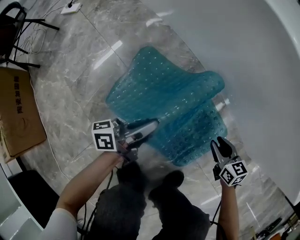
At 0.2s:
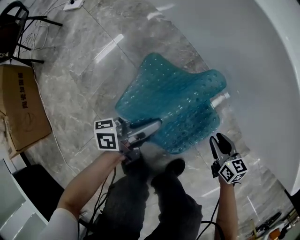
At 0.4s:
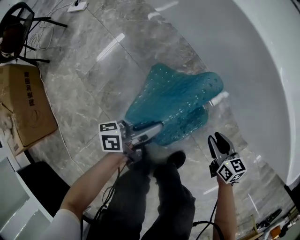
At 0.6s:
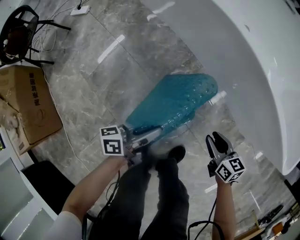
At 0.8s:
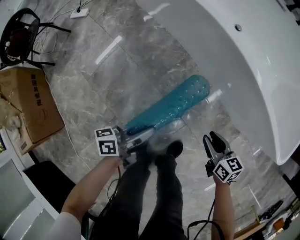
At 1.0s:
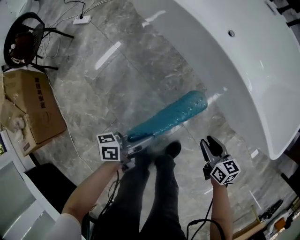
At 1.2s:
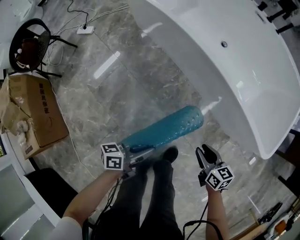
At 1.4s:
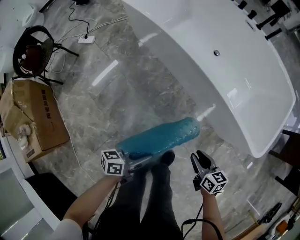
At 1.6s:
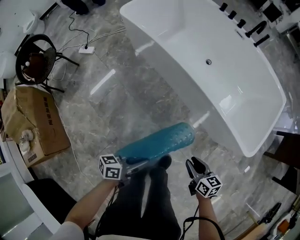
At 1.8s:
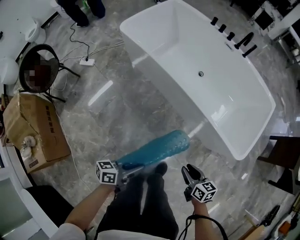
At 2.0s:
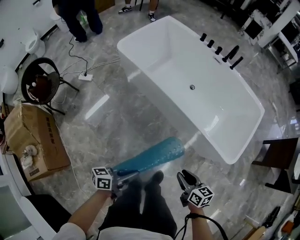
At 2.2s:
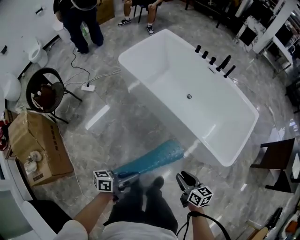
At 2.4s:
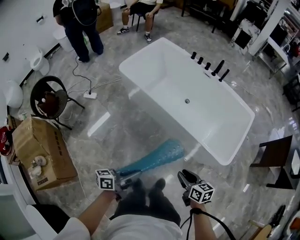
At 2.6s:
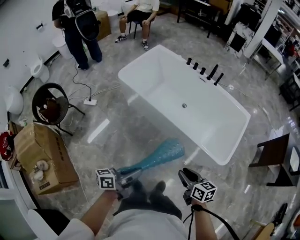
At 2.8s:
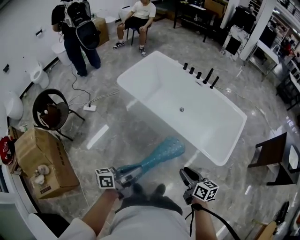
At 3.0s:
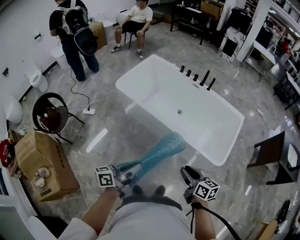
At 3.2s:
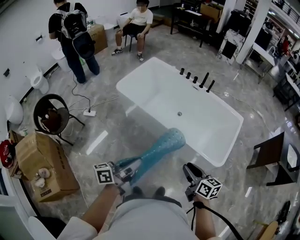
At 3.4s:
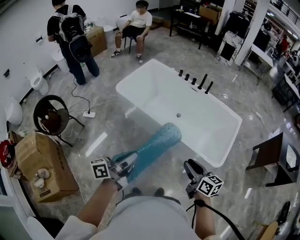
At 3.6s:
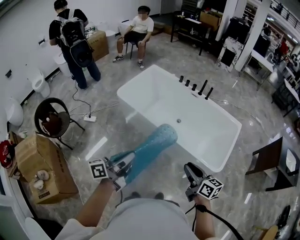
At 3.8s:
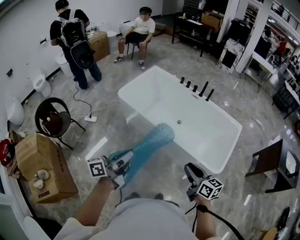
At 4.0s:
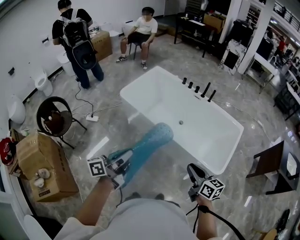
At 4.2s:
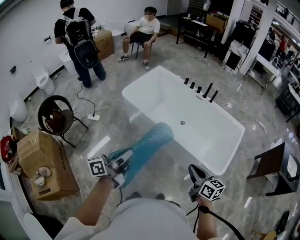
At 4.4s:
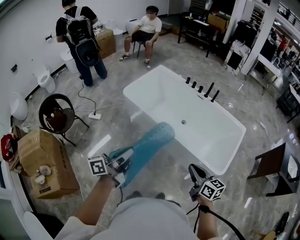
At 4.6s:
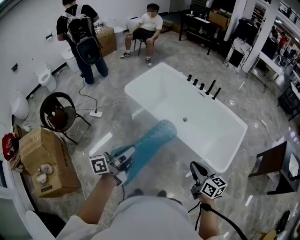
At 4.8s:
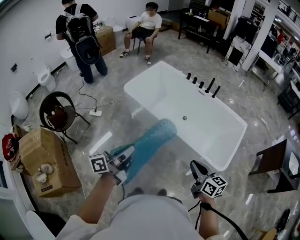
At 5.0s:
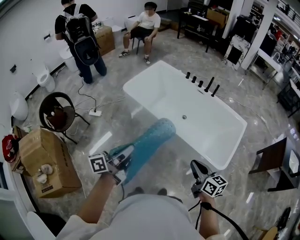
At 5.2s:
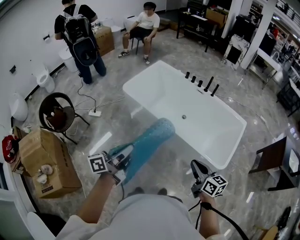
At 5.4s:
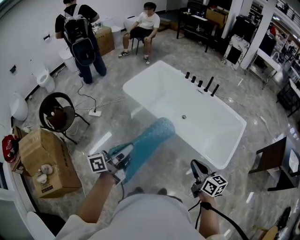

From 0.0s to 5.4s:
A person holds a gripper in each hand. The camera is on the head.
From 0.0s to 1.4s: The left gripper is displaced upward and backward by about 35 cm; the right gripper travels upward by roughly 35 cm.
From 1.4s to 2.8s: Both grippers move upward, some 40 cm.
From 2.8s to 4.0s: The left gripper shifts some 10 cm upward and to the left; the right gripper moves upward, some 10 cm.
From 4.0s to 5.4s: The grippers make only small movements.

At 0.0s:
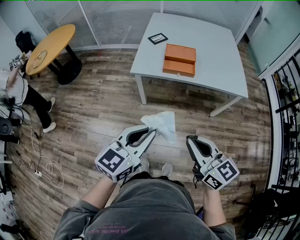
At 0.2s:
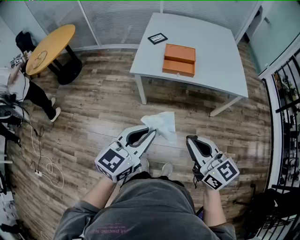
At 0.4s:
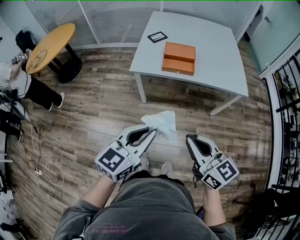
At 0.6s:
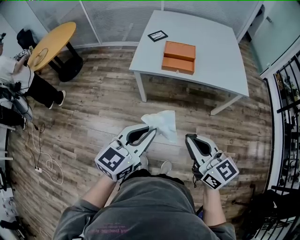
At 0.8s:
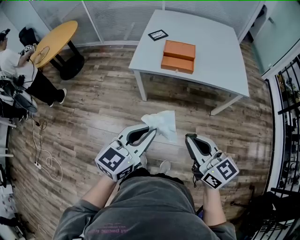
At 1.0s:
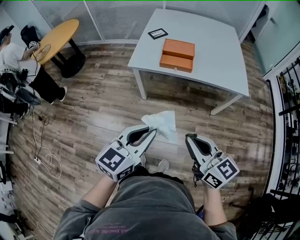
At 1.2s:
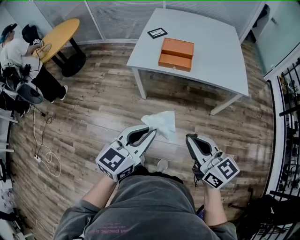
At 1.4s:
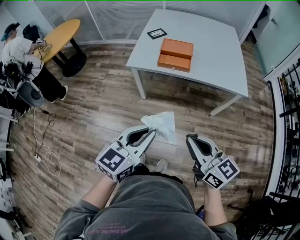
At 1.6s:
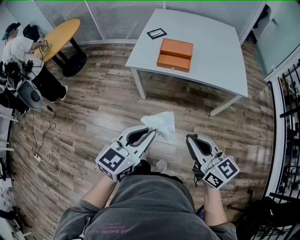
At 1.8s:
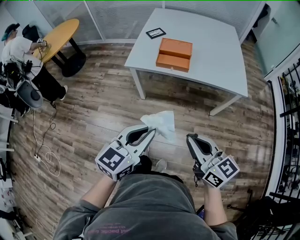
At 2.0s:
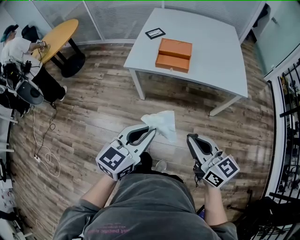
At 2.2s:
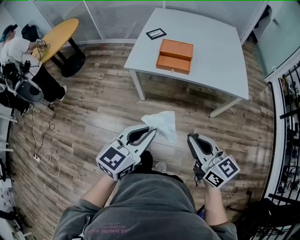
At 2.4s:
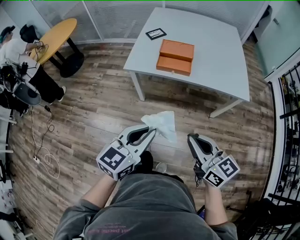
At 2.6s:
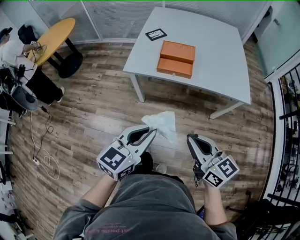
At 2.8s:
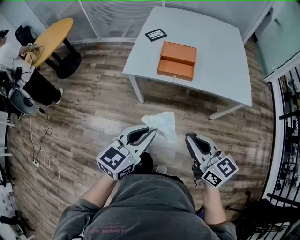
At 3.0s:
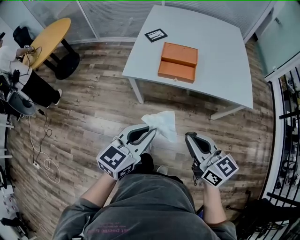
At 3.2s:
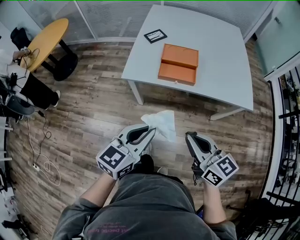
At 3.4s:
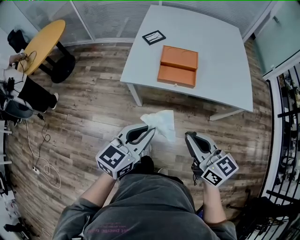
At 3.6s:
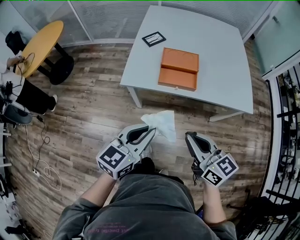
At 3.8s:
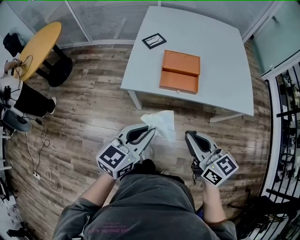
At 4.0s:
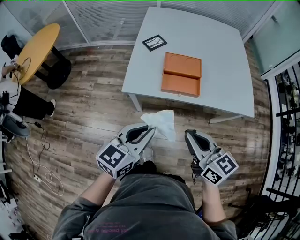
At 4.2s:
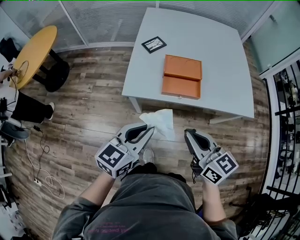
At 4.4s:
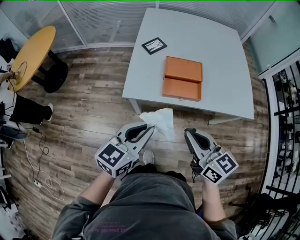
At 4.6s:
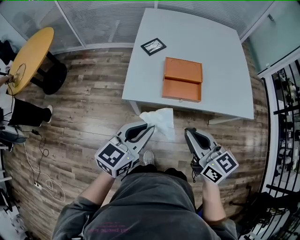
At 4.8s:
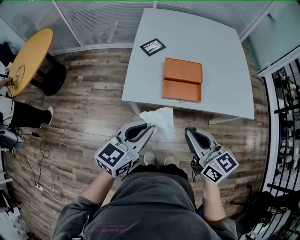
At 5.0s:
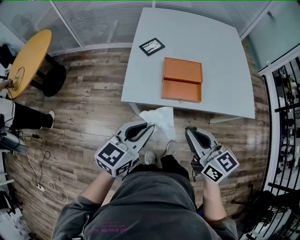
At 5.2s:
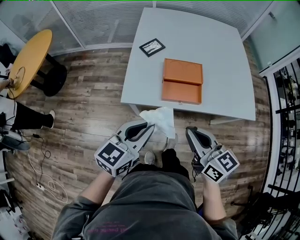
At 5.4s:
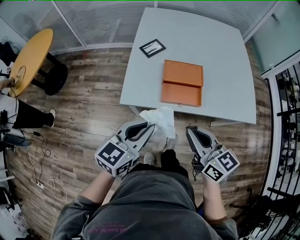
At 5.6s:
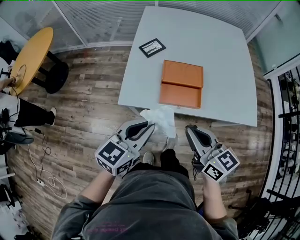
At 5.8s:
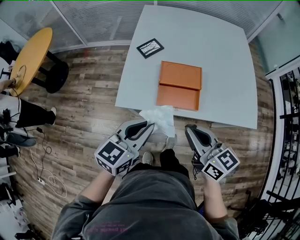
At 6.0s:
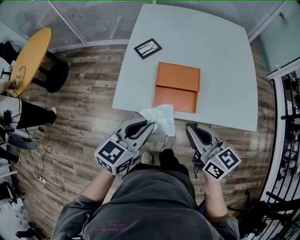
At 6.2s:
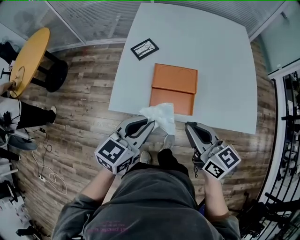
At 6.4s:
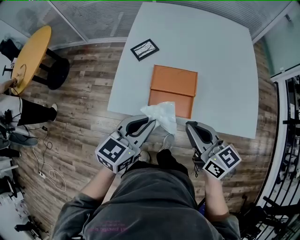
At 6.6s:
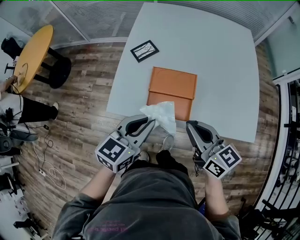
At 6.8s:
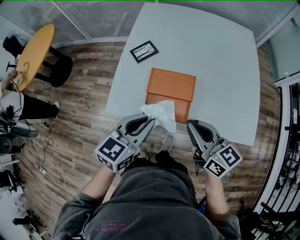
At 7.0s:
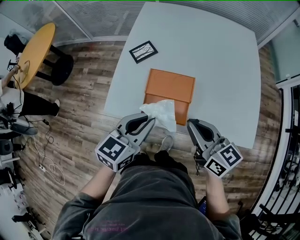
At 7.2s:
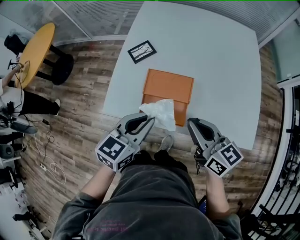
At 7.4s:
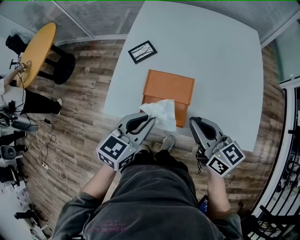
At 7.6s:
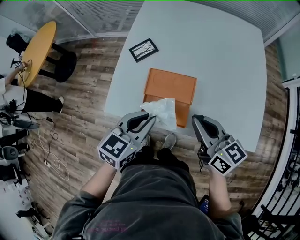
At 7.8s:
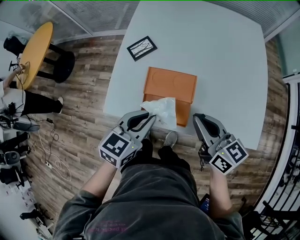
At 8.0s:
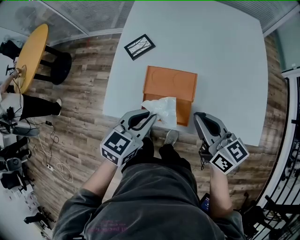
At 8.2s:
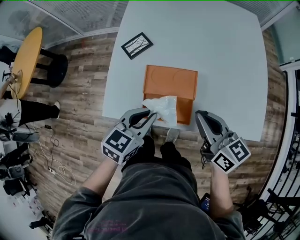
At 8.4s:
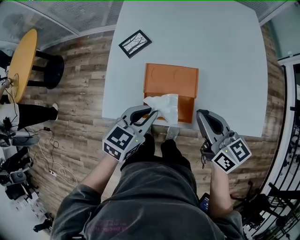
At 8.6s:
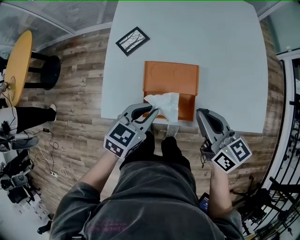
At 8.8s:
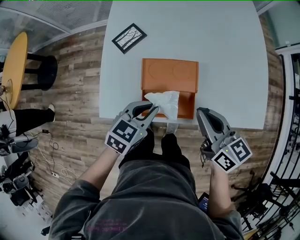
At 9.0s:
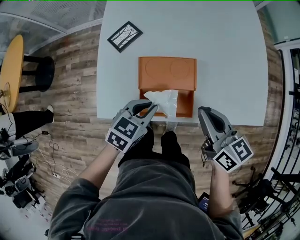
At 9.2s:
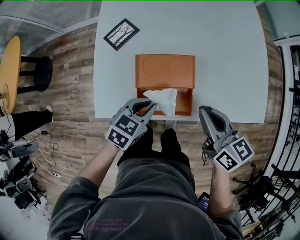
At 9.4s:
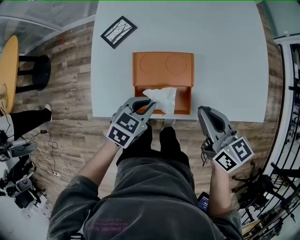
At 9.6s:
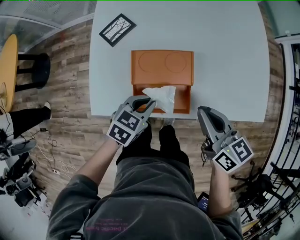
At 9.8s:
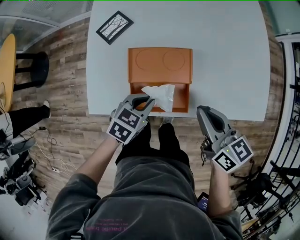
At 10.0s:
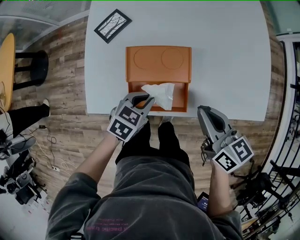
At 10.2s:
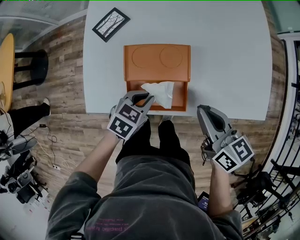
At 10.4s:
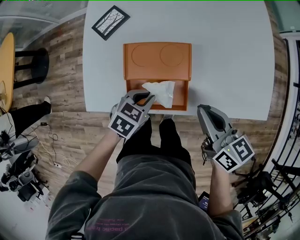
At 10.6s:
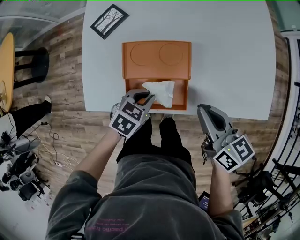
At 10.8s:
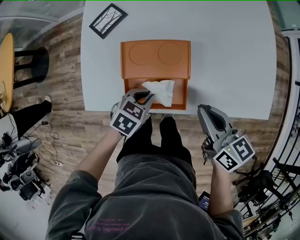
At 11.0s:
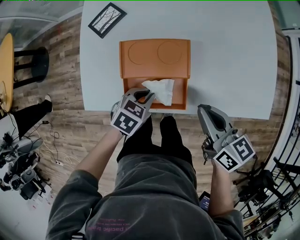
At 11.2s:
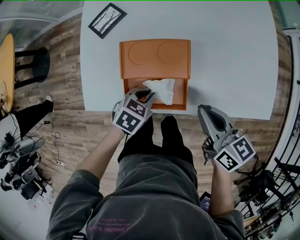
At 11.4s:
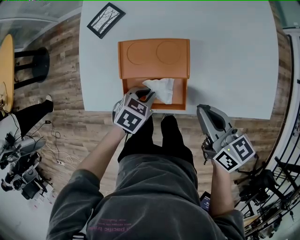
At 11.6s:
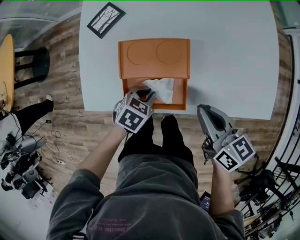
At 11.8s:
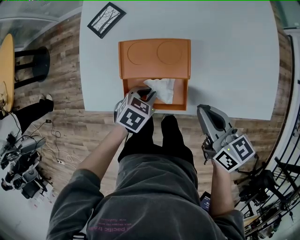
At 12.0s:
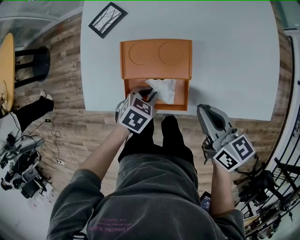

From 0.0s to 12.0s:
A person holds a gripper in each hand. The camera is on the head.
From 0.0s to 1.6s: Both grippers move to the right, roughly 10 cm.
From 1.6s to 3.0s: Both grippers travel together forward, approximately 15 cm.
From 3.0s to 4.4s: Both grippers travel together forward and to the left, roughly 20 cm.
From 4.4s to 6.0s: Both grippers travel together forward and to the right, approximately 15 cm.
From 6.0s to 7.6s: Both grippers move forward and to the right, approximately 15 cm.
From 7.6s to 9.0s: The right gripper heads downward, covering roughly 5 cm. Meanwhile the left gripper heads downward, covering about 15 cm, and swivels about 20 degrees.
From 9.0s to 10.4s: The right gripper heads downward, covering about 5 cm. Meanwhile the left gripper moves downward, some 10 cm.
From 10.4s to 12.0s: The grippers stay close to where they were, moving slightly.

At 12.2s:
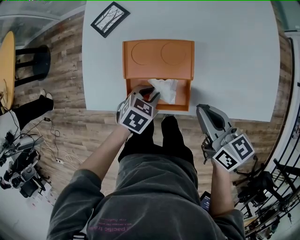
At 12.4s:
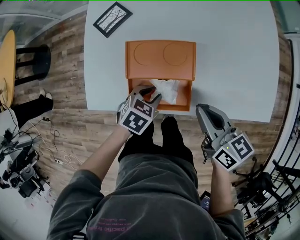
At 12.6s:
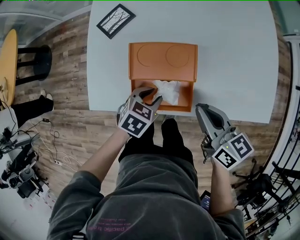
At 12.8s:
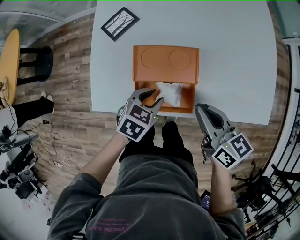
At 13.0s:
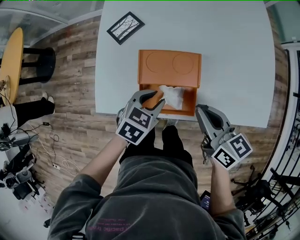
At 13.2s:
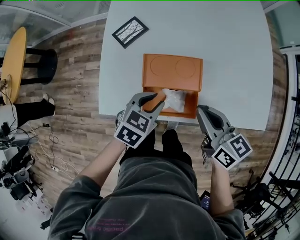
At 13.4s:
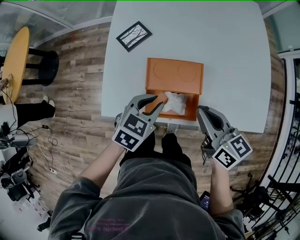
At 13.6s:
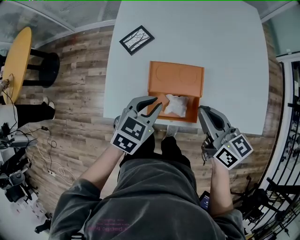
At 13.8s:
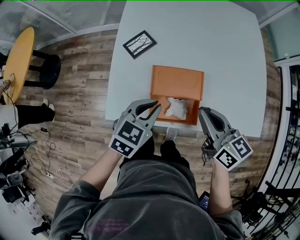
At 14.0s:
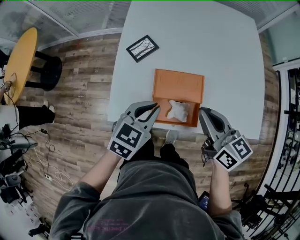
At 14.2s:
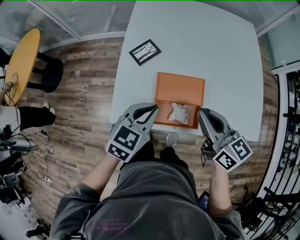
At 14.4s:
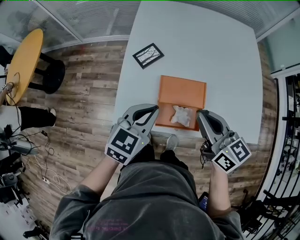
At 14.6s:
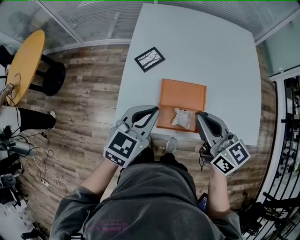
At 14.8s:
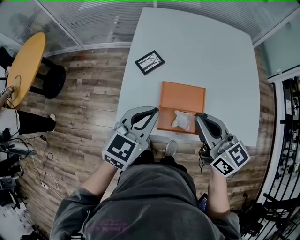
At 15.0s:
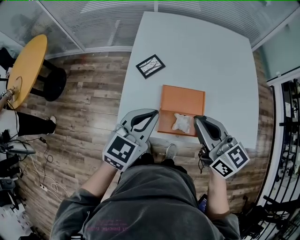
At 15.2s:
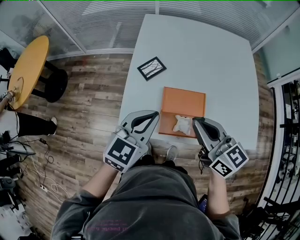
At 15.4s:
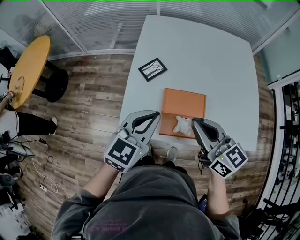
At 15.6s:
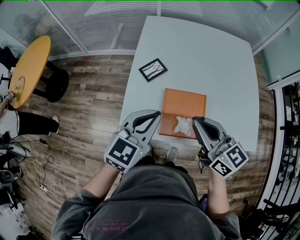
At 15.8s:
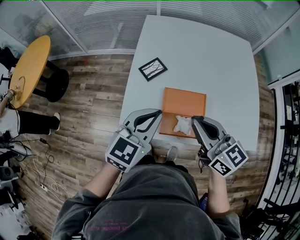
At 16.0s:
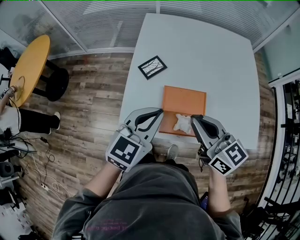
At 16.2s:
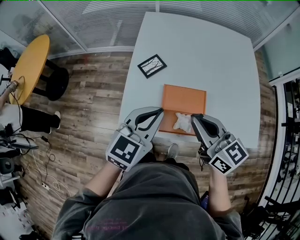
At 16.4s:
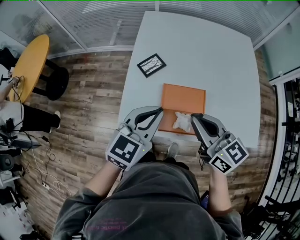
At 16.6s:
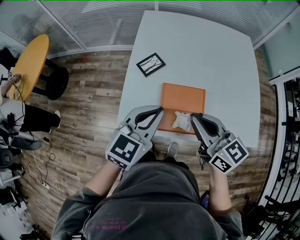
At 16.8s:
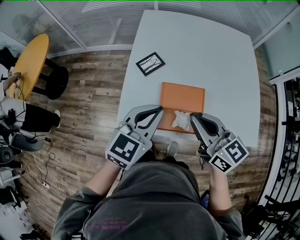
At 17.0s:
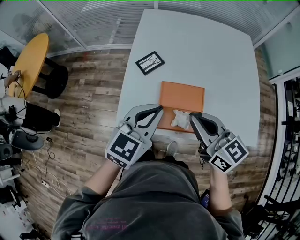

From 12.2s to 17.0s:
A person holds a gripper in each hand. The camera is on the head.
From 12.2s to 13.8s: The left gripper travels upward and to the left by about 20 cm, and turns by about 30 degrees, while the right gripper is displaced upward and to the left by about 15 cm.
From 13.8s to 15.4s: Both grippers travel together upward and to the left, about 15 cm. The left gripper turns by about 20 degrees.
From 15.4s to 17.0s: The grippers make only small movements.

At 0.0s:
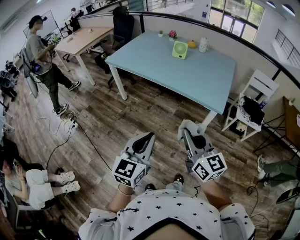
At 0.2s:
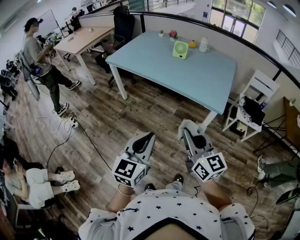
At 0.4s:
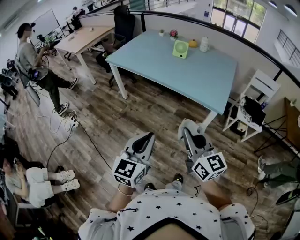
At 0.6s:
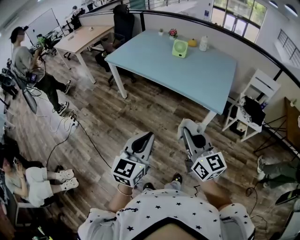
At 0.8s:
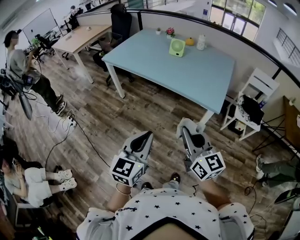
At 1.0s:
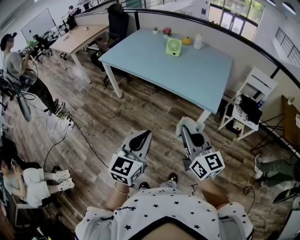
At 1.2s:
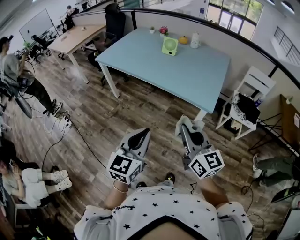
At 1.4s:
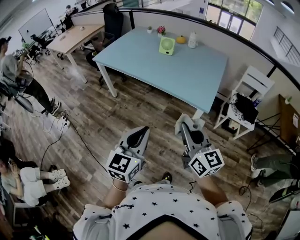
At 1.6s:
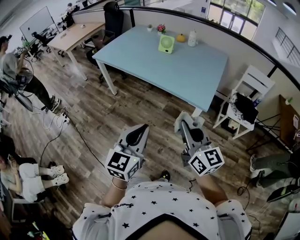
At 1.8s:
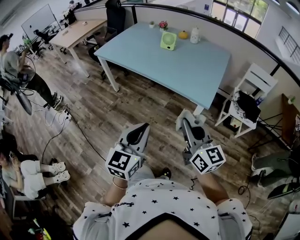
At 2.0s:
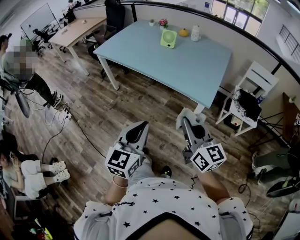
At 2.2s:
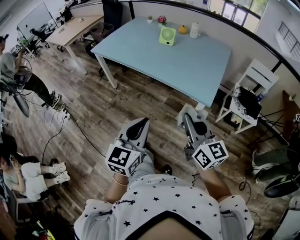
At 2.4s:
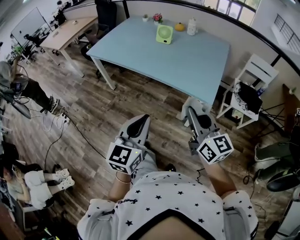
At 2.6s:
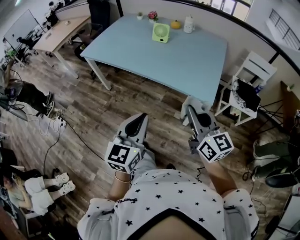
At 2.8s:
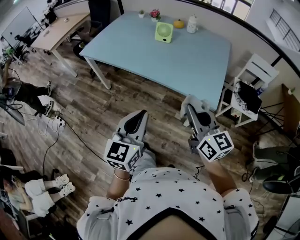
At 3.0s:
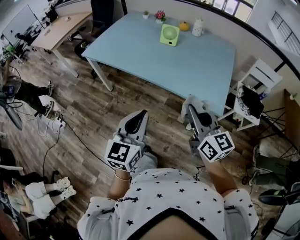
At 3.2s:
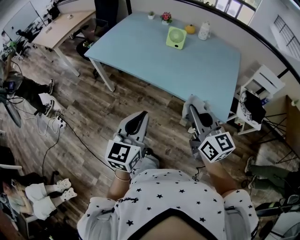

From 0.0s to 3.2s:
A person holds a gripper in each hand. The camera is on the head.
From 0.0s to 1.6s: The grippers both shift to the right by about 10 cm.
From 1.6s to 3.2s: The two grippers go some 25 cm forward and to the left.
